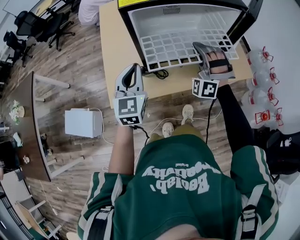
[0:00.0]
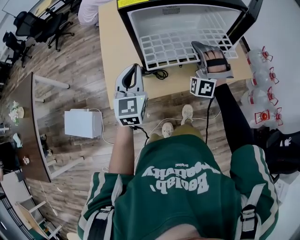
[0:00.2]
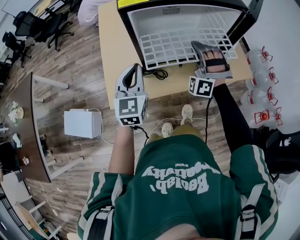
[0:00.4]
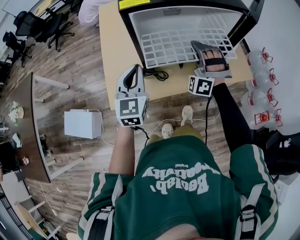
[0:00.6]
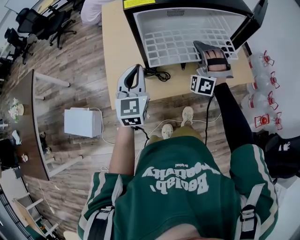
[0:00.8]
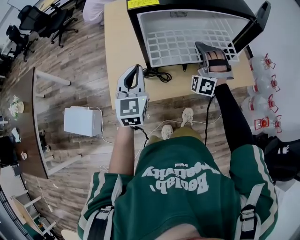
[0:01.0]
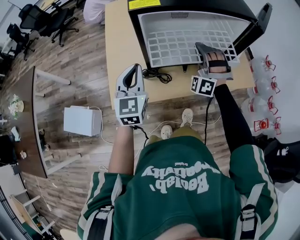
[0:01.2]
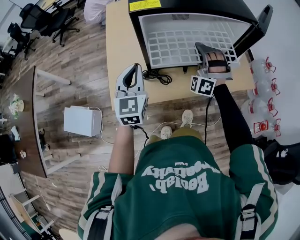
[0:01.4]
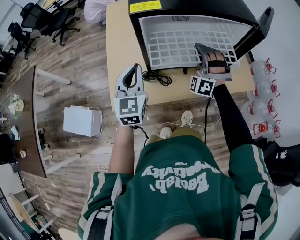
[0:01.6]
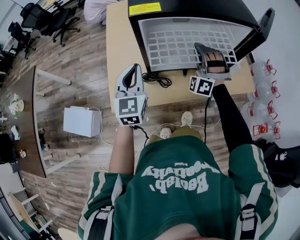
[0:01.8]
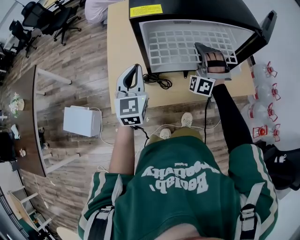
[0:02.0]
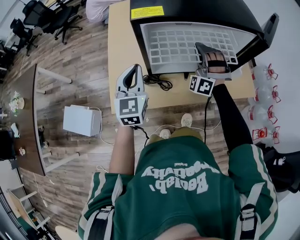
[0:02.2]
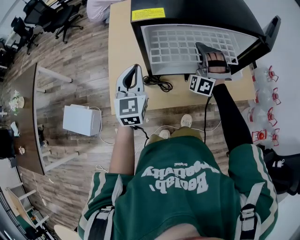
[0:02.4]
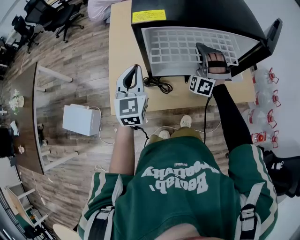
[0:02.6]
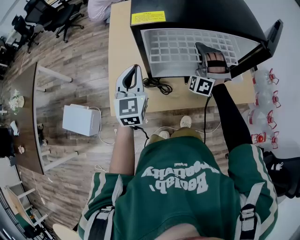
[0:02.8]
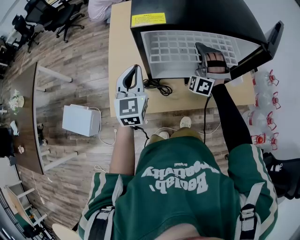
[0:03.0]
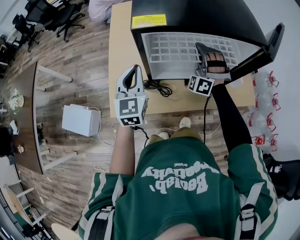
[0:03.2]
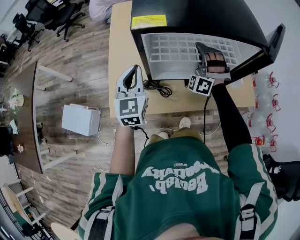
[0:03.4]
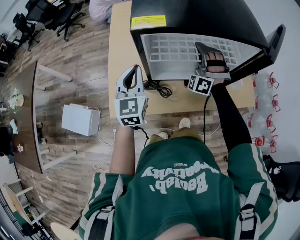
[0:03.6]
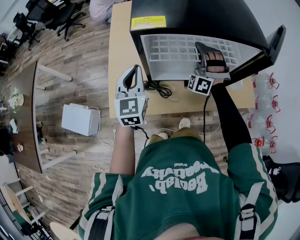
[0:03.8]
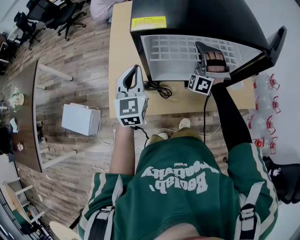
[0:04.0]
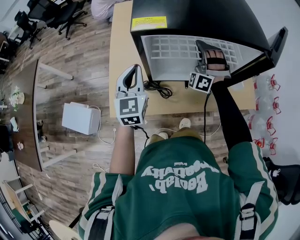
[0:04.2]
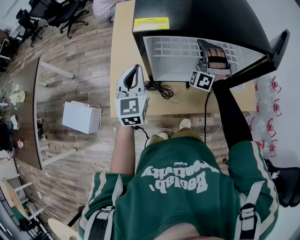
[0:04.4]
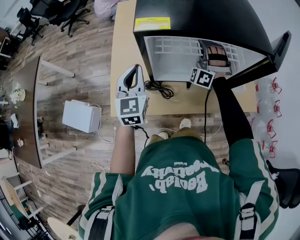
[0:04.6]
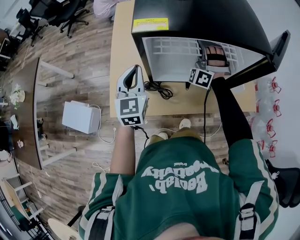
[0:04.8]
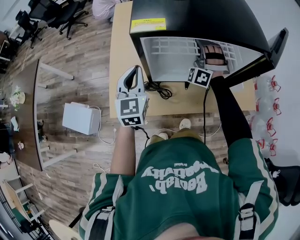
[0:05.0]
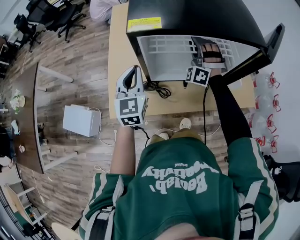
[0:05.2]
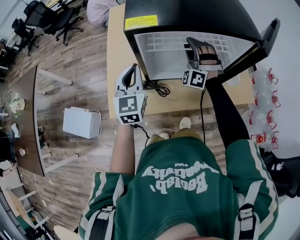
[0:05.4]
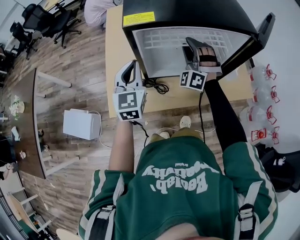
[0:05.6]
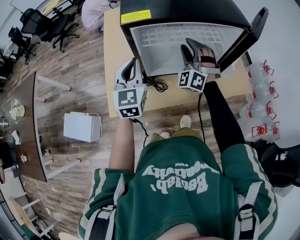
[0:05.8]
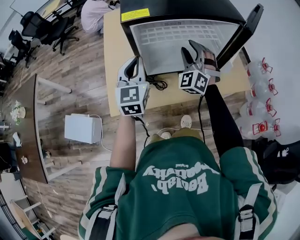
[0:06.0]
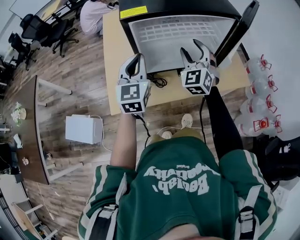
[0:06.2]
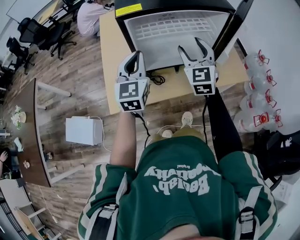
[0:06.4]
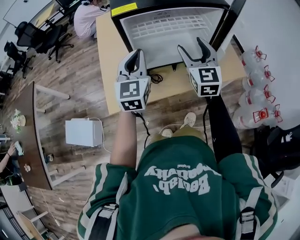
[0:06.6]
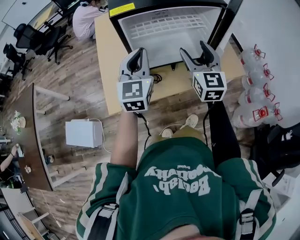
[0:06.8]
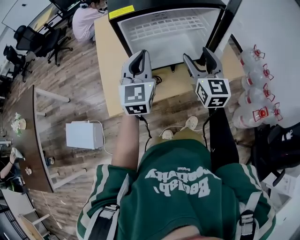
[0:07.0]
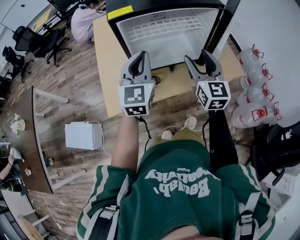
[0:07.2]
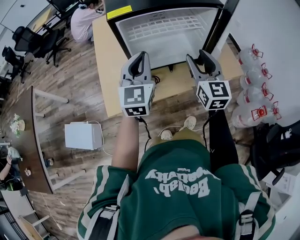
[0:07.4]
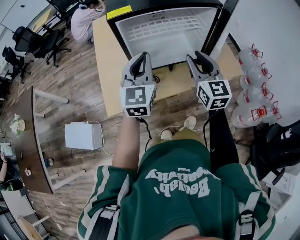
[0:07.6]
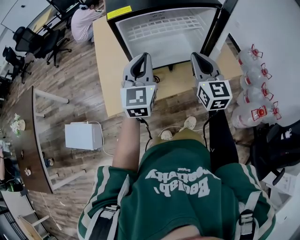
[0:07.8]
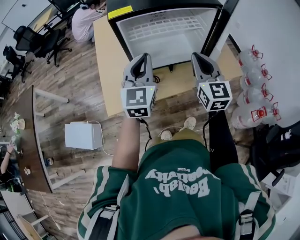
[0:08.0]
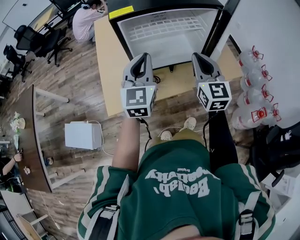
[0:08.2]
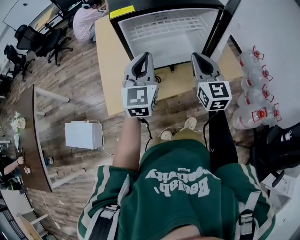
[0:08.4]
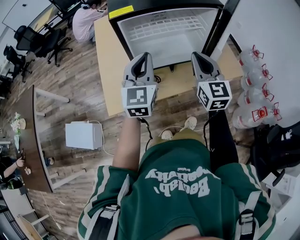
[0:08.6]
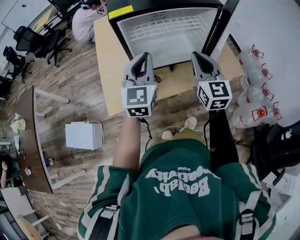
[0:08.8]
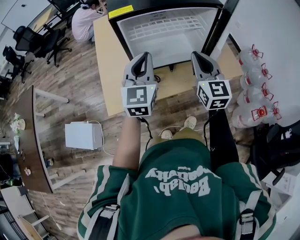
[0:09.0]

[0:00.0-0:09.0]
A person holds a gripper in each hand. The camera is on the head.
0:00.0 to 0:01.6: The right gripper goes roughly 5 cm forward.
0:01.6 to 0:03.0: The right gripper travels forward by approximately 5 cm.
0:03.0 to 0:04.4: The grippers move only a little.
0:04.4 to 0:06.0: The left gripper ends up some 5 cm from where it was. The right gripper heads backward, covering roughly 10 cm, rotates some 30 degrees, and opens.
0:06.0 to 0:07.6: The right gripper is displaced backward, to the right and upward by approximately 15 cm, twists roughly 60 degrees clockwise, seen from behind, and opens, then closes once more. Meanwhile the left gripper heads to the right and backward, covering about 10 cm.
0:07.6 to 0:09.0: The right gripper closes up.

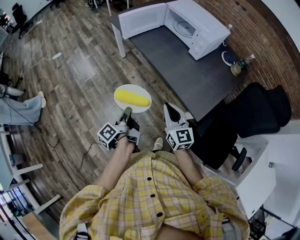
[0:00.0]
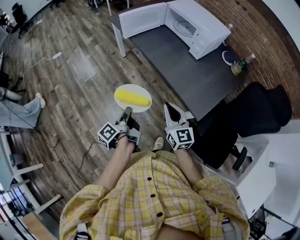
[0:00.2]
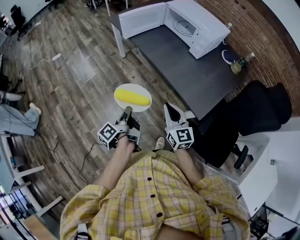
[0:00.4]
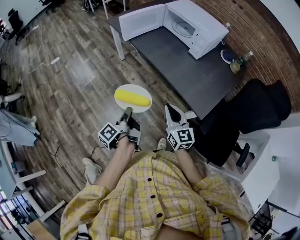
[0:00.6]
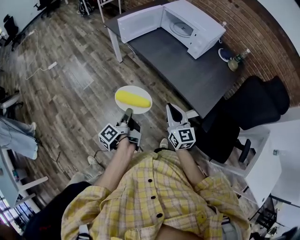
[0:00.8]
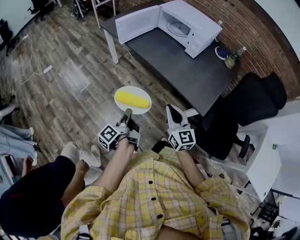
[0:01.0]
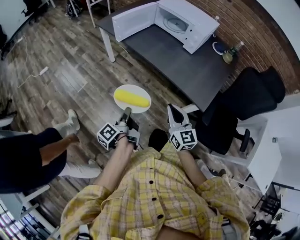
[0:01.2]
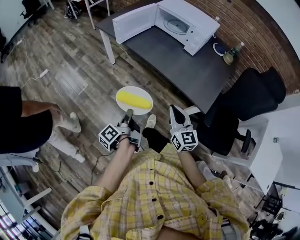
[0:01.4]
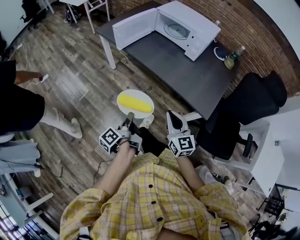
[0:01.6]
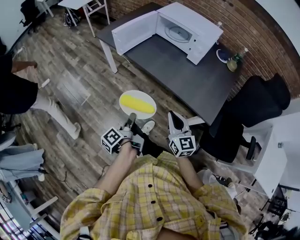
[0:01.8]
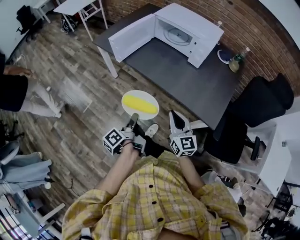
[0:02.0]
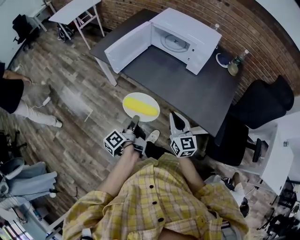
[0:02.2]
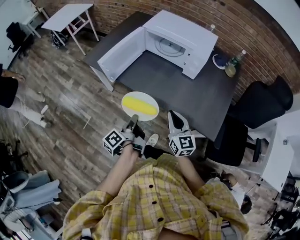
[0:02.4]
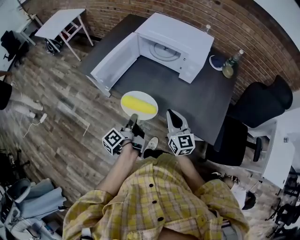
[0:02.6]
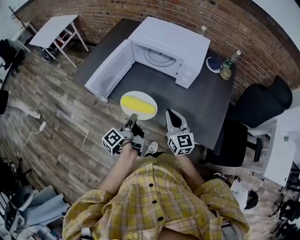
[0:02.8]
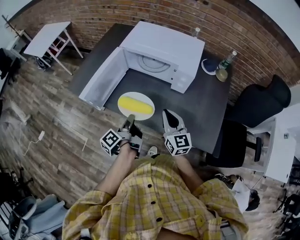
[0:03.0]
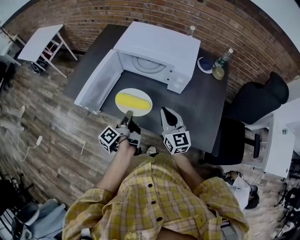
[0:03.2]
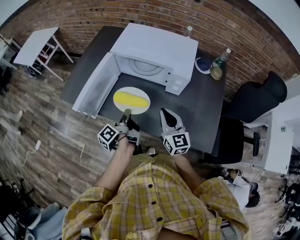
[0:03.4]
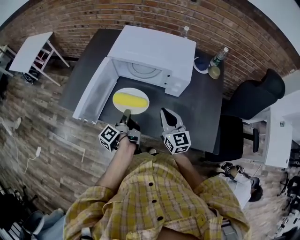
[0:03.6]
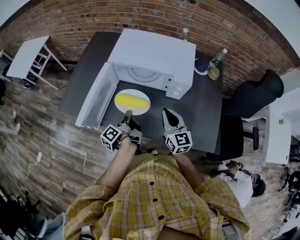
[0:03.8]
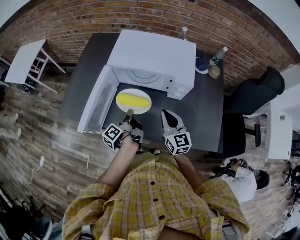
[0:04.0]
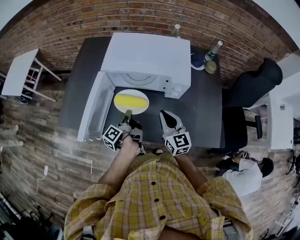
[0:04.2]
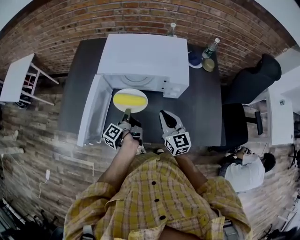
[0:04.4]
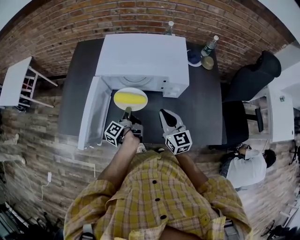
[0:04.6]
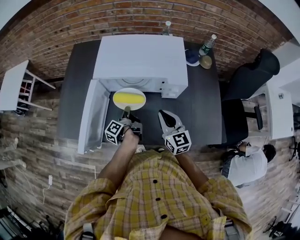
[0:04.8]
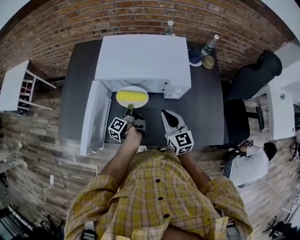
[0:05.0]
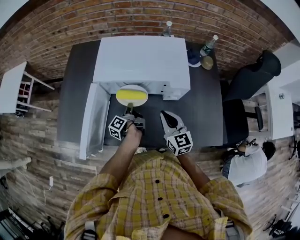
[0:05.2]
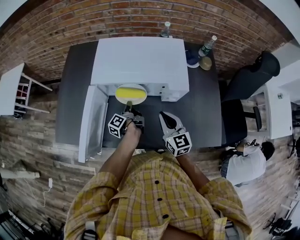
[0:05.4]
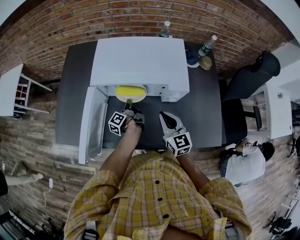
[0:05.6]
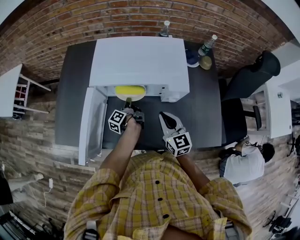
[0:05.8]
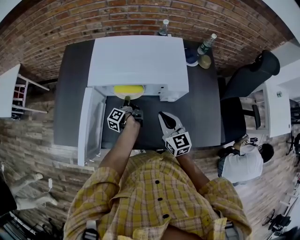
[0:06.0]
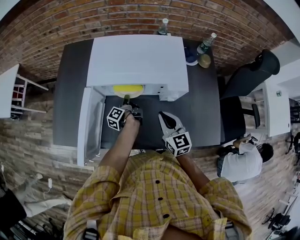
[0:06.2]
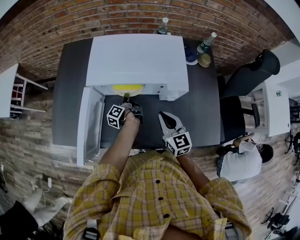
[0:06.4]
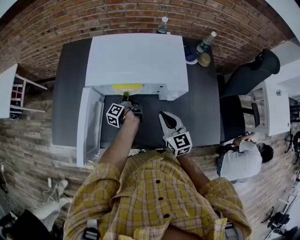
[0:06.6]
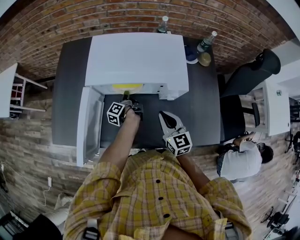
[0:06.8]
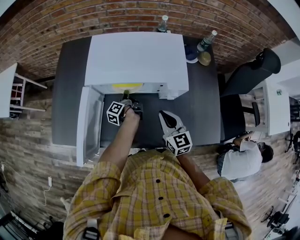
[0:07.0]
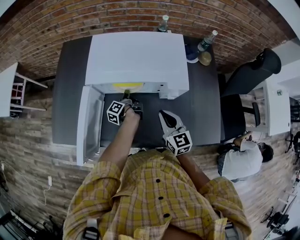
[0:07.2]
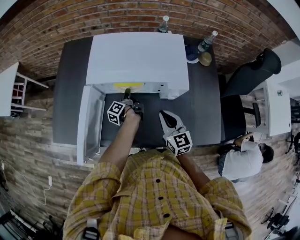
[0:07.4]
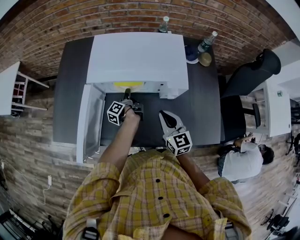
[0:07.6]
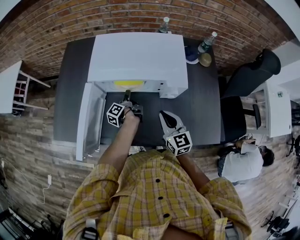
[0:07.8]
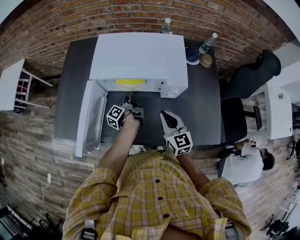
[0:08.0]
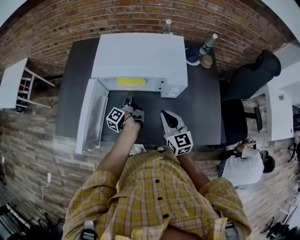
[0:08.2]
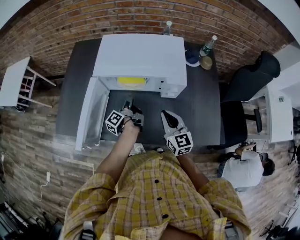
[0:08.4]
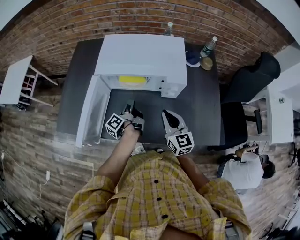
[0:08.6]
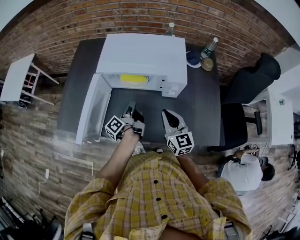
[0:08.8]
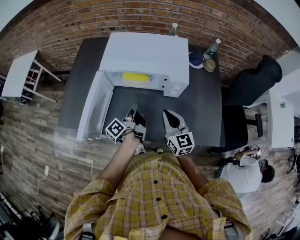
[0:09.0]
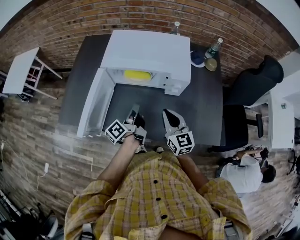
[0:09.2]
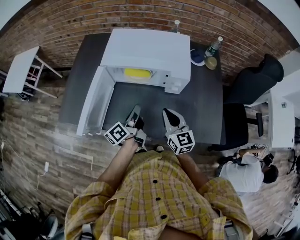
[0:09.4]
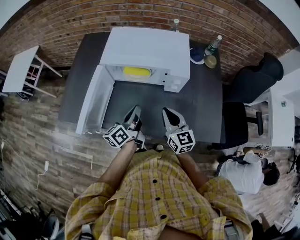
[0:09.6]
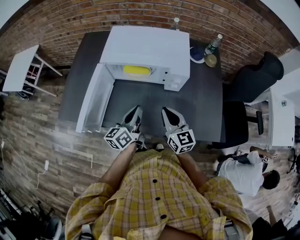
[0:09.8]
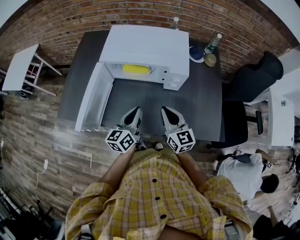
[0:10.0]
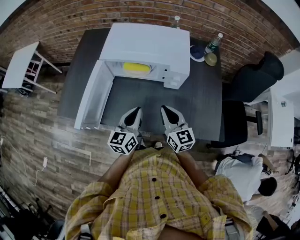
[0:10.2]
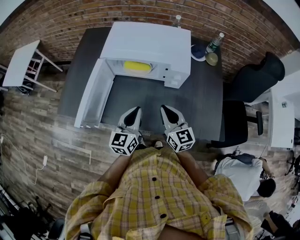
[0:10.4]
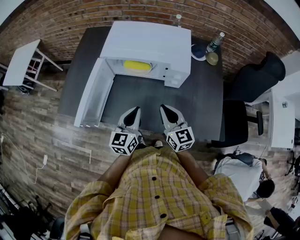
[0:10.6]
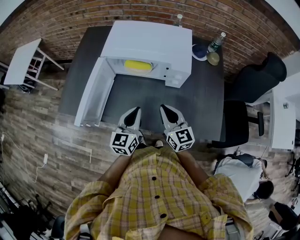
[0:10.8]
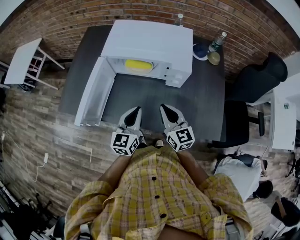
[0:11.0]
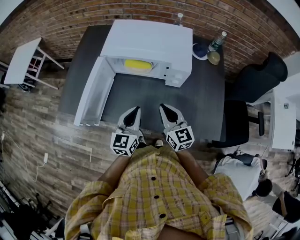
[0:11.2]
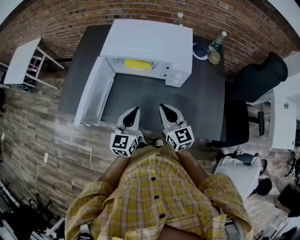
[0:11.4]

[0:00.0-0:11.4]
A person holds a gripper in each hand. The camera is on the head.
0:00.0 to 0:01.4: The right gripper changes place by some 5 cm.
0:01.4 to 0:02.8: The right gripper ends up roughly 30 cm from where it was.
0:02.8 to 0:04.2: The right gripper changes place by roughly 15 cm.
0:04.2 to 0:05.6: The right gripper changes place by roughly 5 cm.
0:07.2 to 0:08.6: The right gripper ends up some 5 cm from where it was.

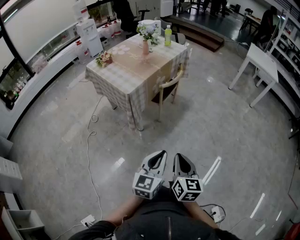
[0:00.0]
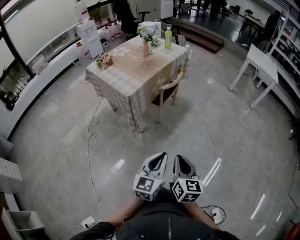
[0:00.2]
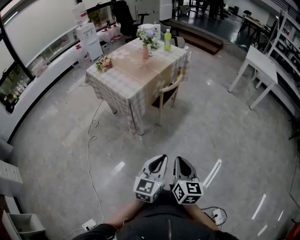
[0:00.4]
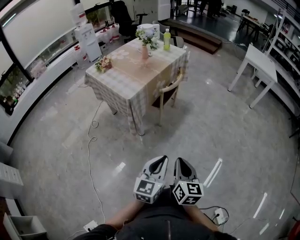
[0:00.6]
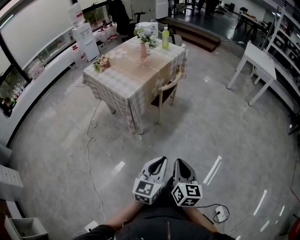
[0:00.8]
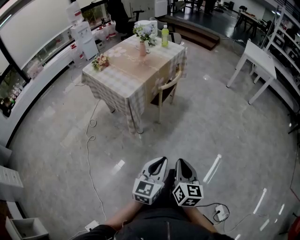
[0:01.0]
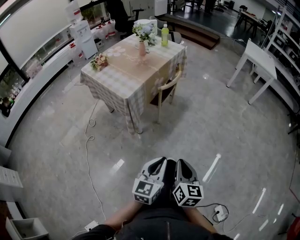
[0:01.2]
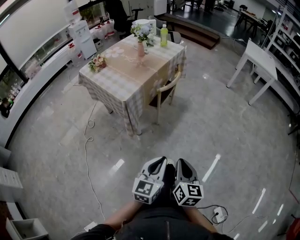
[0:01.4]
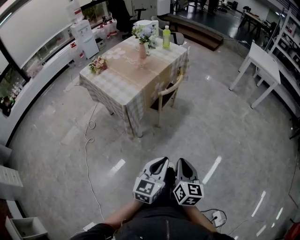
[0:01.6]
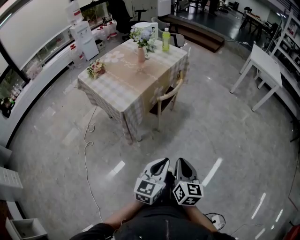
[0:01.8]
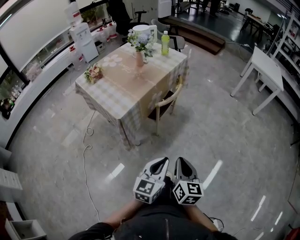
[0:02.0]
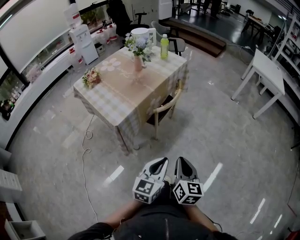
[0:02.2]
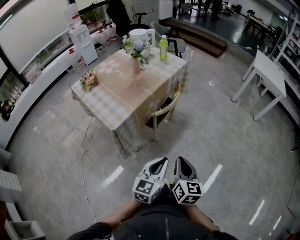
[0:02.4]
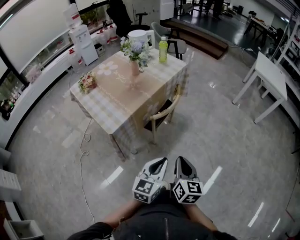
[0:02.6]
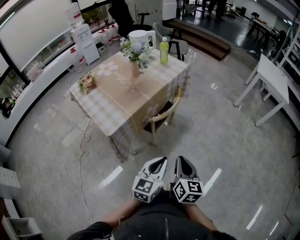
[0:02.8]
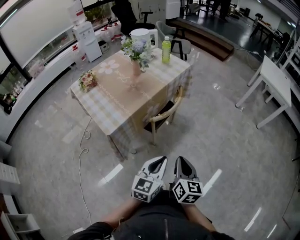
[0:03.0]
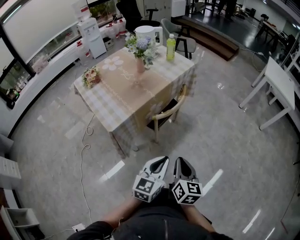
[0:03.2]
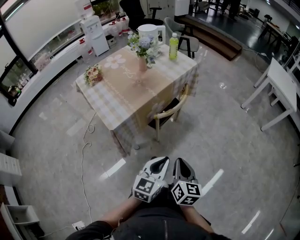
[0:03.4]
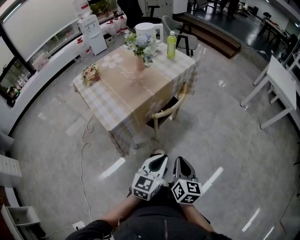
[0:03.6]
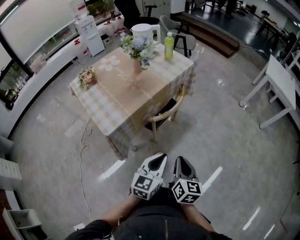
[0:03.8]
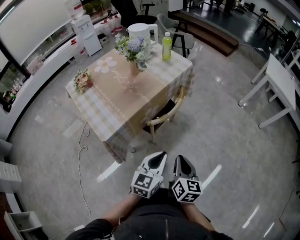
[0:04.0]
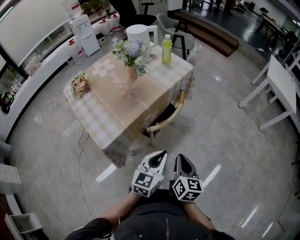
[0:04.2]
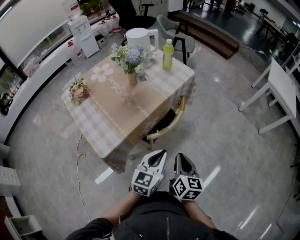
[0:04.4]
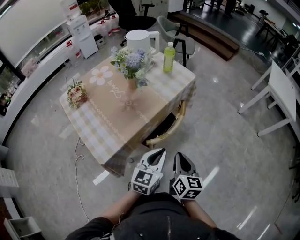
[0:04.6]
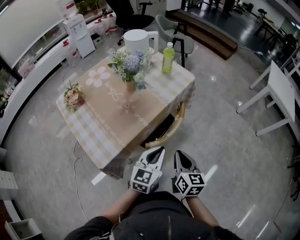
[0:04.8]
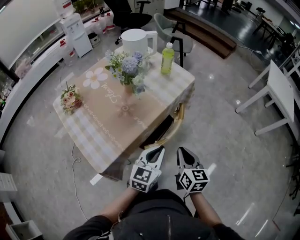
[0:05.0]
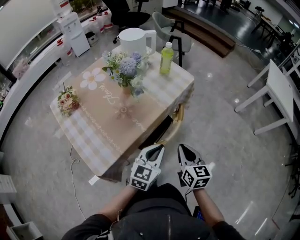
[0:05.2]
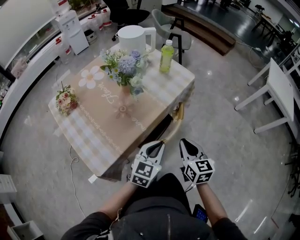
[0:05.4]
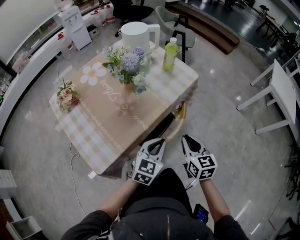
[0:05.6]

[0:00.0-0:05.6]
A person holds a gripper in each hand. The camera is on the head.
0:00.0 to 0:01.4: The left gripper ends up approximately 5 cm from where it was.
0:01.4 to 0:02.8: The two grippers go approximately 25 cm forward.
0:02.8 to 0:04.2: The grippers both shift forward by approximately 15 cm.
0:04.2 to 0:05.6: Both grippers move forward, roughly 20 cm. The right gripper swivels about 20 degrees.
